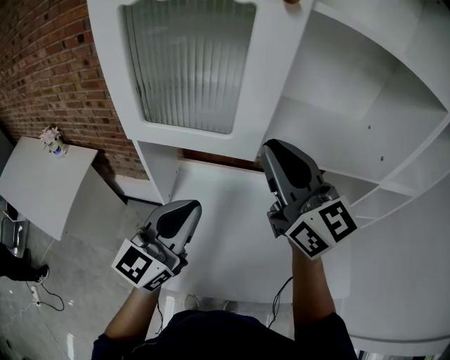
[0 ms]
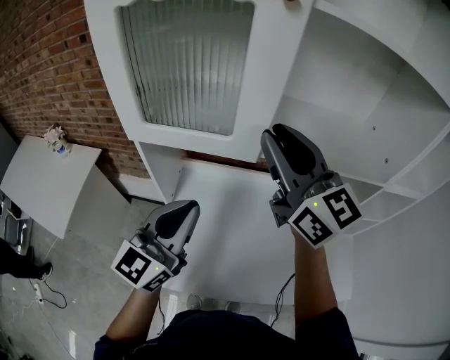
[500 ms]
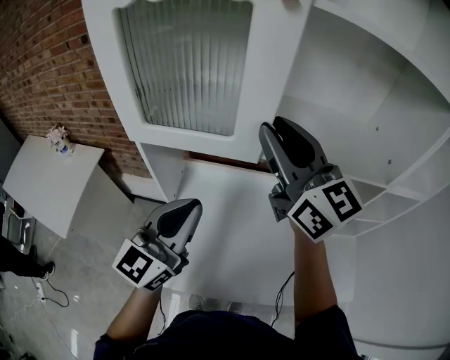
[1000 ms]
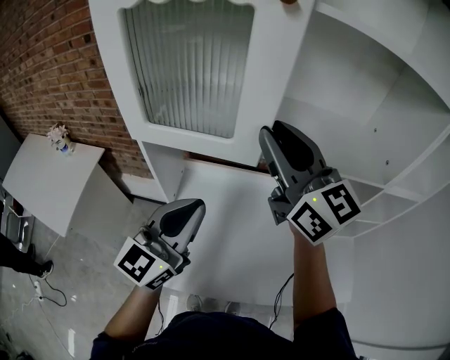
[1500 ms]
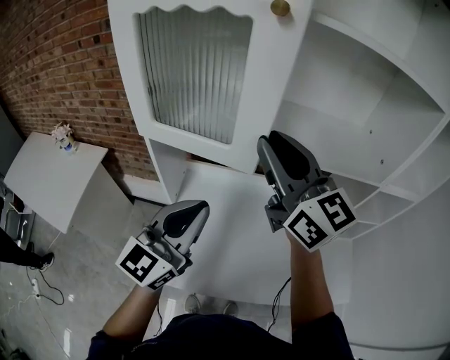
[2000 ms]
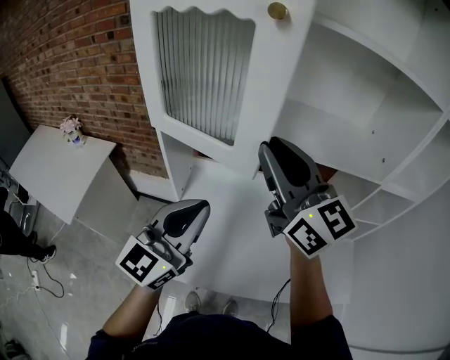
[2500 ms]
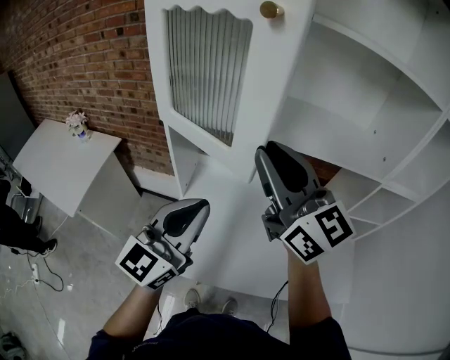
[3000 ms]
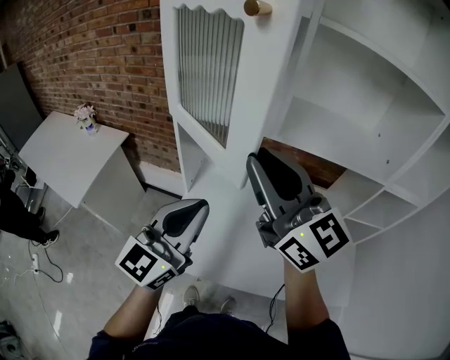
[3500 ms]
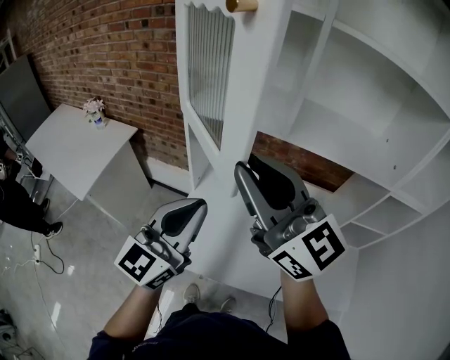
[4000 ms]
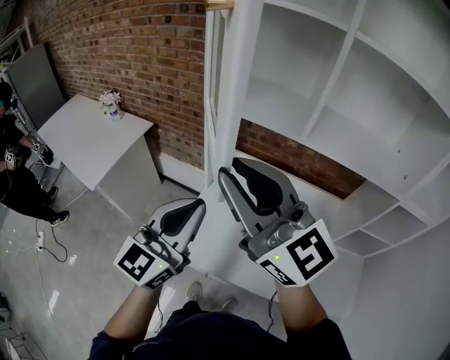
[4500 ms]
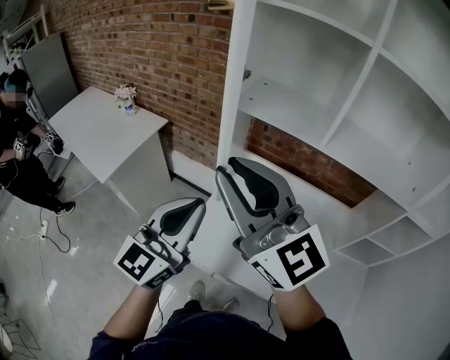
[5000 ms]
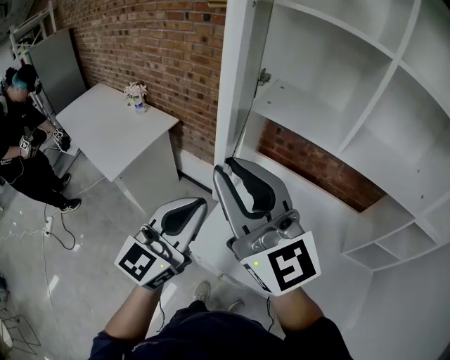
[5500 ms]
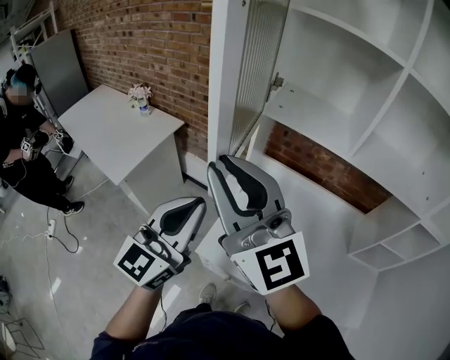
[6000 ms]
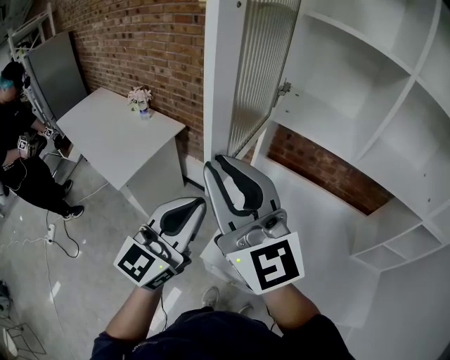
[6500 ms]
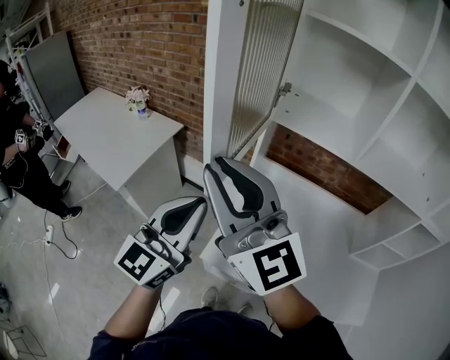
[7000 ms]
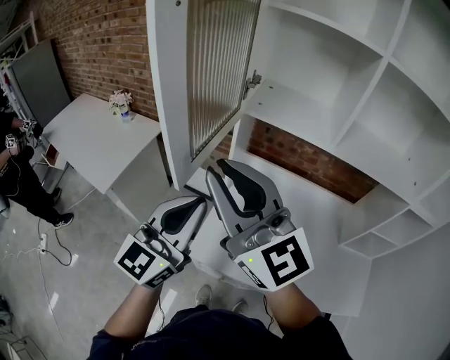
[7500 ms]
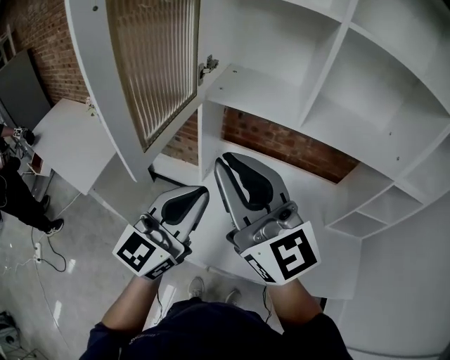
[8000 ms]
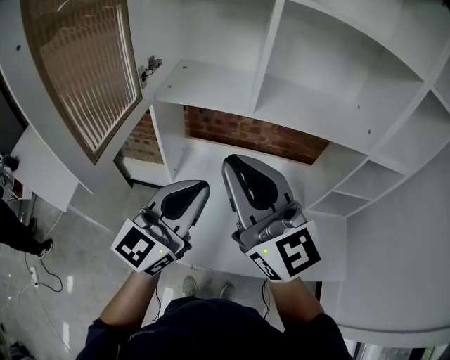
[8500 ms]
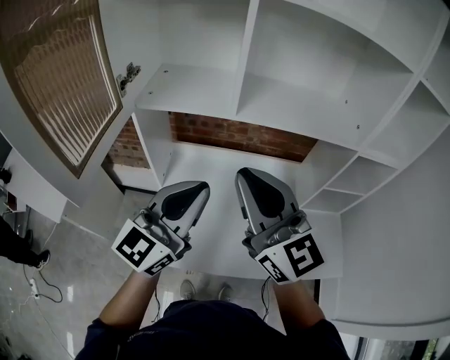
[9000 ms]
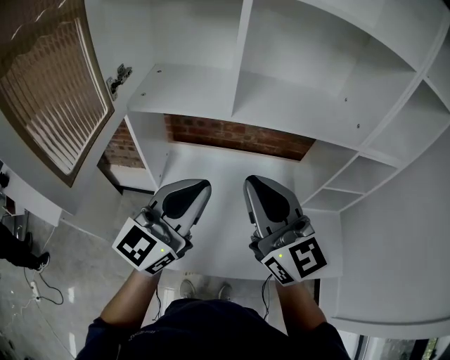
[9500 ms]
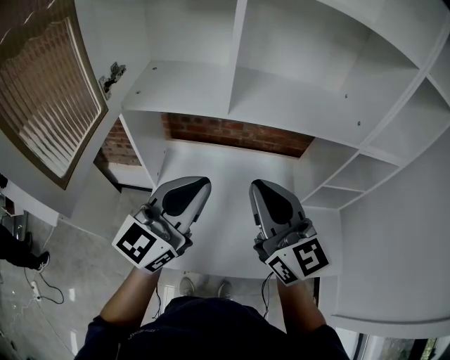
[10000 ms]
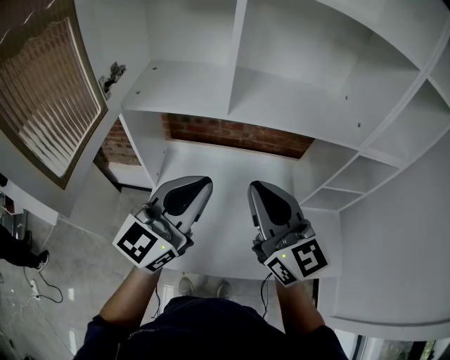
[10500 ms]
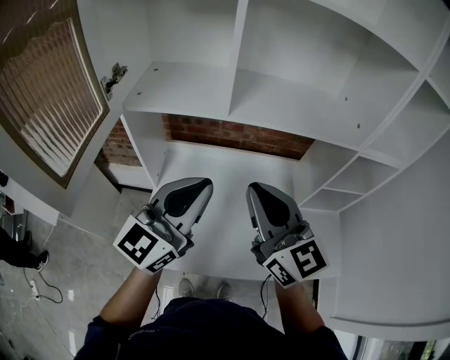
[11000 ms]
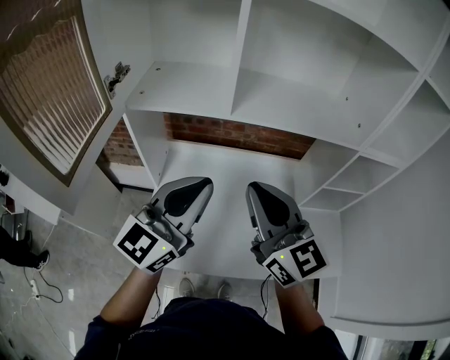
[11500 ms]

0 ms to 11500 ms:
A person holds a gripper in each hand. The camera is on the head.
0 ms to 2000 ms: The grippers move only a little.
2000 ms to 4000 ms: The left gripper heads backward, covering some 10 cm; the right gripper moves backward and to the left, roughly 15 cm.
4000 ms to 6000 ms: Both grippers travel together to the left, approximately 20 cm.
6000 ms to 7500 ms: The grippers stay close to where they were, moving slightly.
7500 ms to 9500 ms: Both grippers move to the right, about 25 cm. The left gripper turns by some 20 degrees, while the right gripper swivels roughly 30 degrees.
9500 ms to 11500 ms: The grippers stay close to where they were, moving slightly.

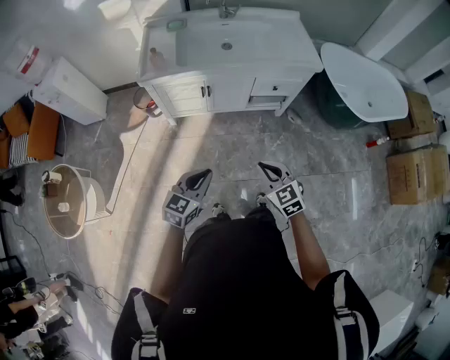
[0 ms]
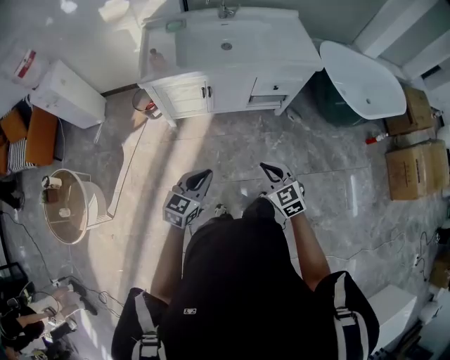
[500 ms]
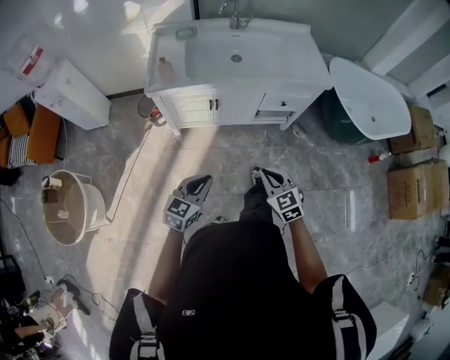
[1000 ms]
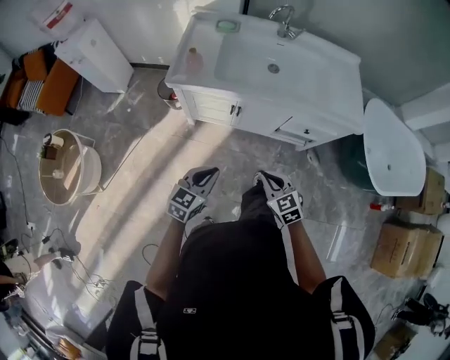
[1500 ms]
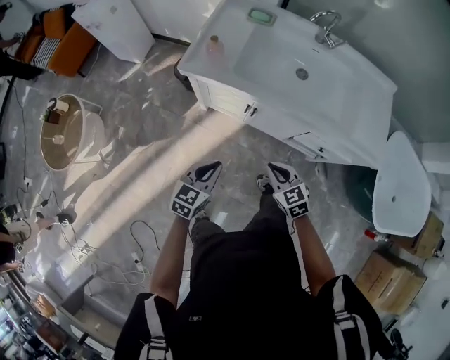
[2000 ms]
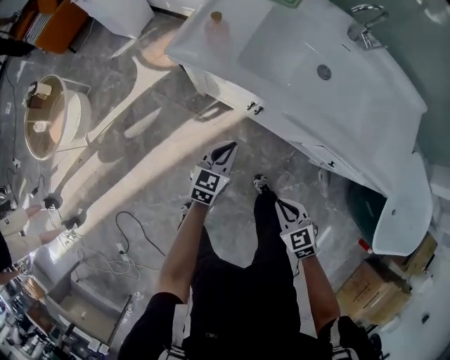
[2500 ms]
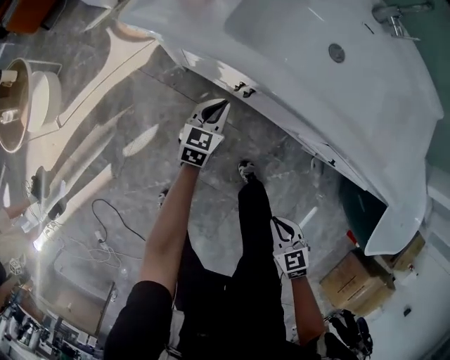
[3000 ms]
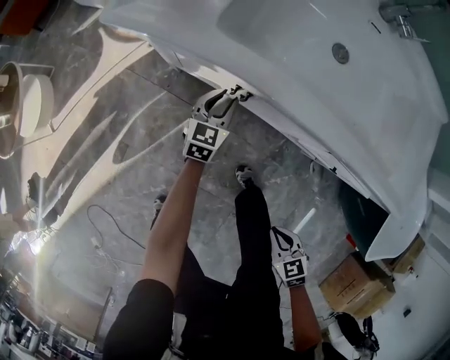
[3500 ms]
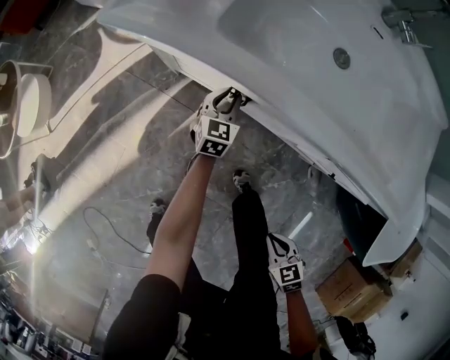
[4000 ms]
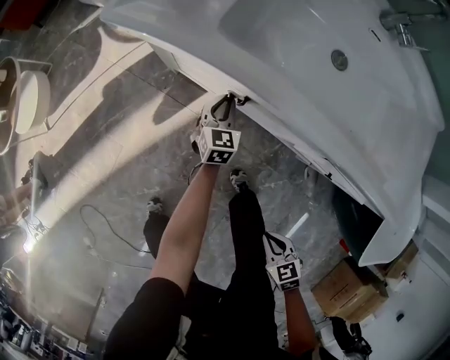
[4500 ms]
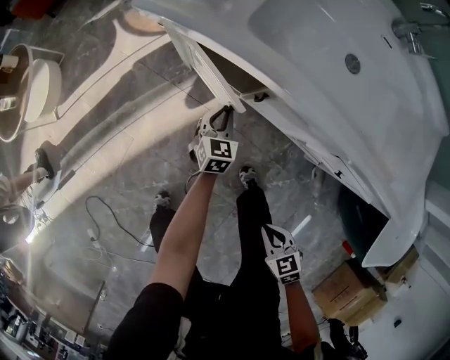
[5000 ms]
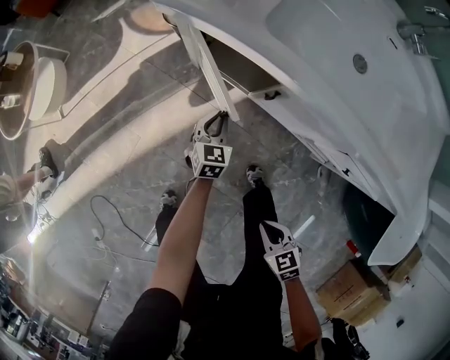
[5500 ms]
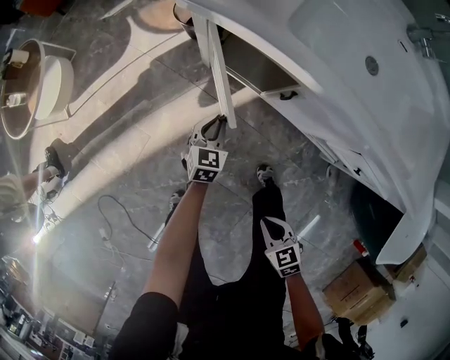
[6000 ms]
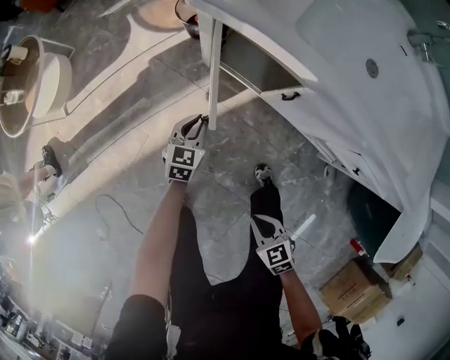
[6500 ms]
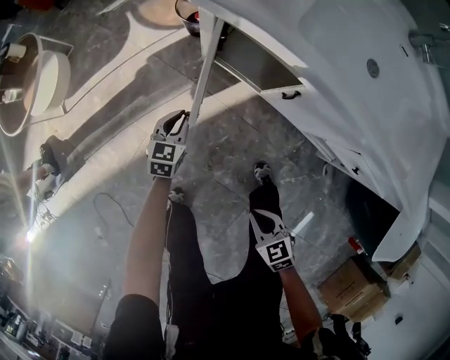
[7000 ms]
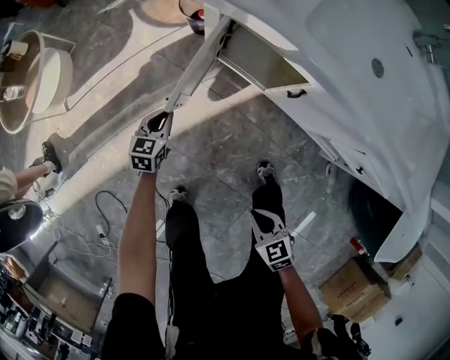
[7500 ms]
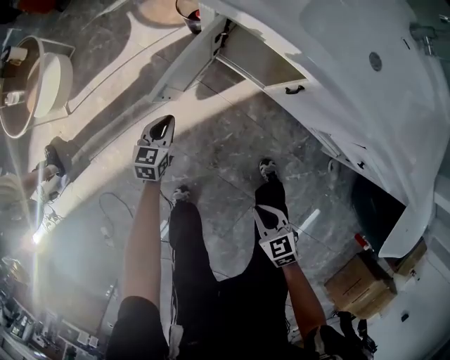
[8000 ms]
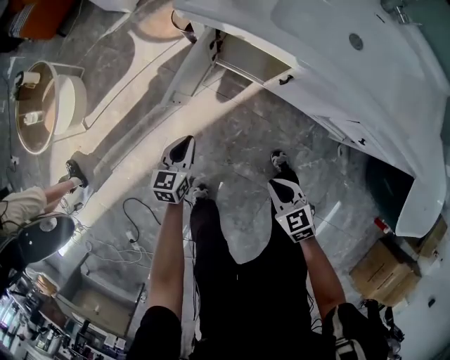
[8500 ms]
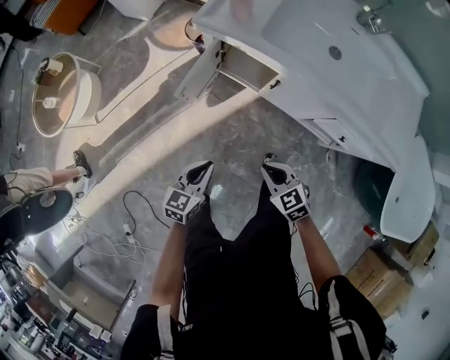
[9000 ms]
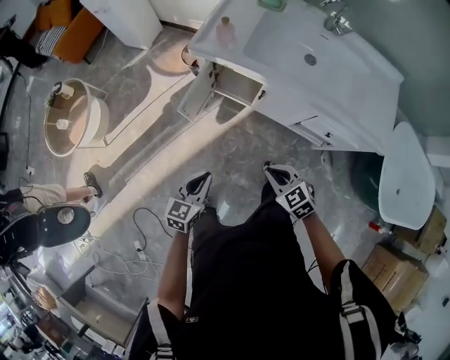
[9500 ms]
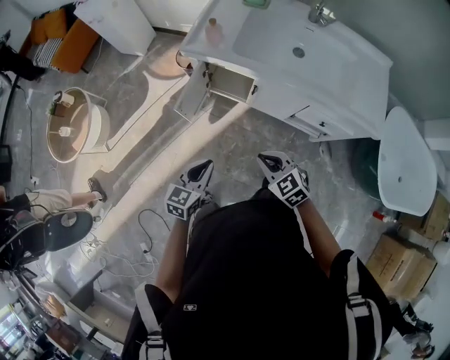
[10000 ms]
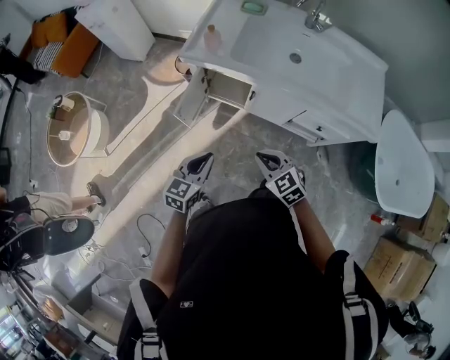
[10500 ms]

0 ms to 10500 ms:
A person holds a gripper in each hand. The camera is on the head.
0 ms to 2000 ms: The right gripper shifts by roughly 30 cm, and swivels about 30 degrees. The left gripper changes place by approximately 25 cm, and swivels roughly 30 degrees.
2000 ms to 4000 ms: The right gripper shifts approximately 30 cm downward, backward and to the right, and turns by roughly 30 degrees; the left gripper shifts roughly 40 cm downward, forward and to the right.
4000 ms to 6500 ms: Both grippers travel together to the left, about 20 cm.
6500 ms to 8500 ms: The left gripper is displaced upward, to the left and backward by some 15 cm; the right gripper goes about 10 cm forward and upward.
8500 ms to 10500 ms: The right gripper shifts about 20 cm upward. The left gripper travels upward and backward by approximately 30 cm, and turns by about 20 degrees.

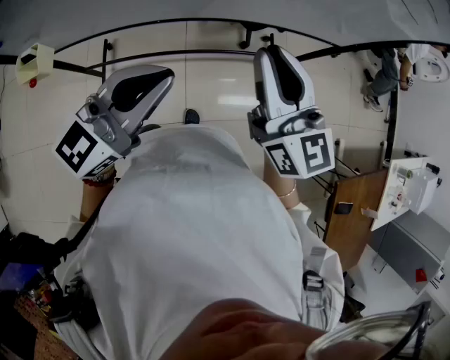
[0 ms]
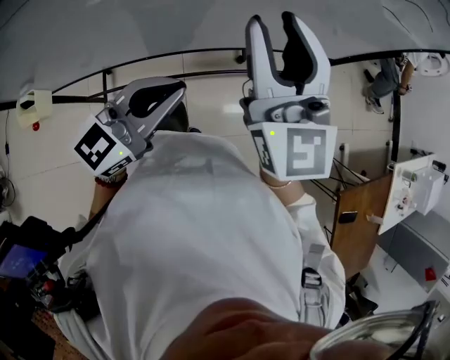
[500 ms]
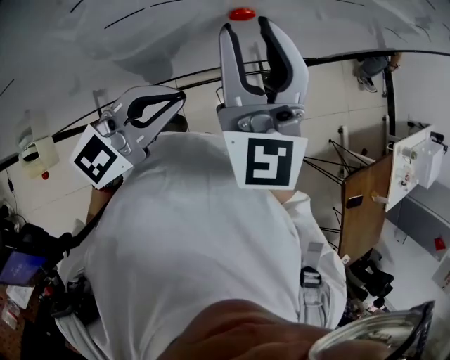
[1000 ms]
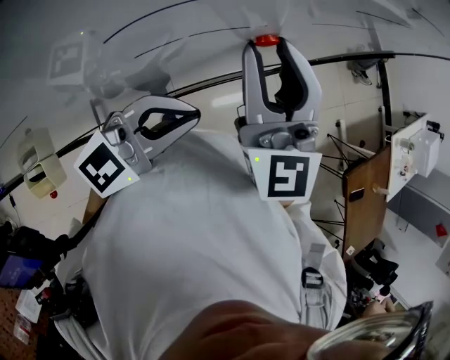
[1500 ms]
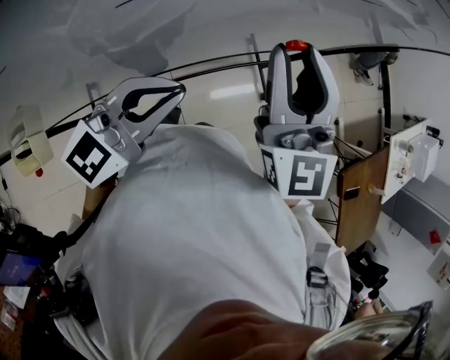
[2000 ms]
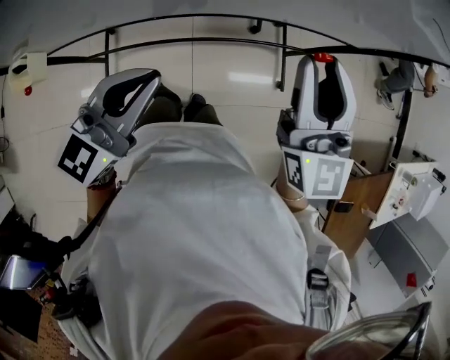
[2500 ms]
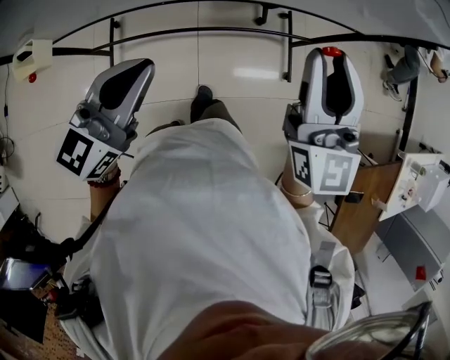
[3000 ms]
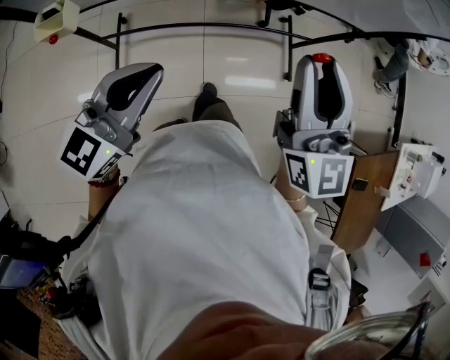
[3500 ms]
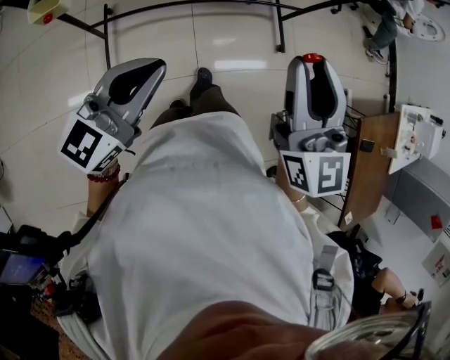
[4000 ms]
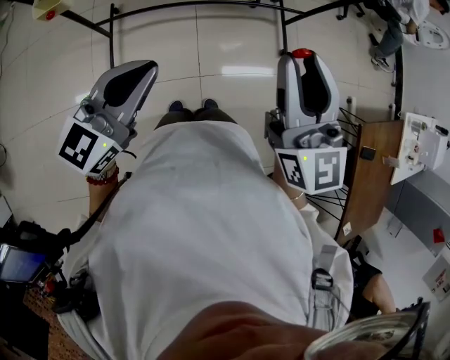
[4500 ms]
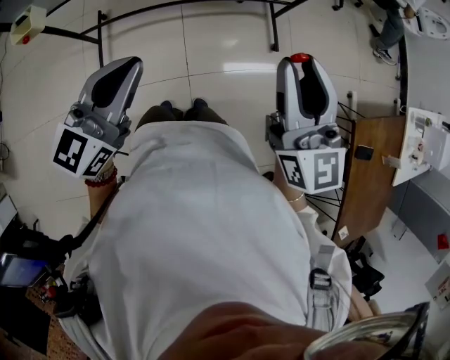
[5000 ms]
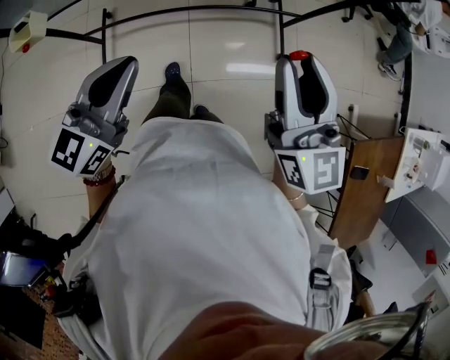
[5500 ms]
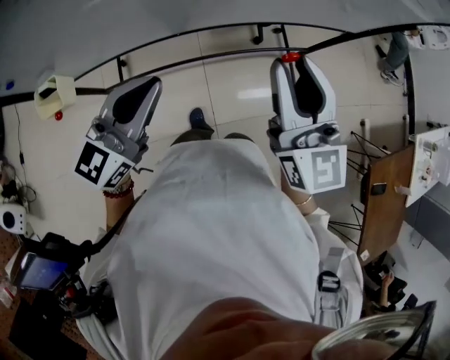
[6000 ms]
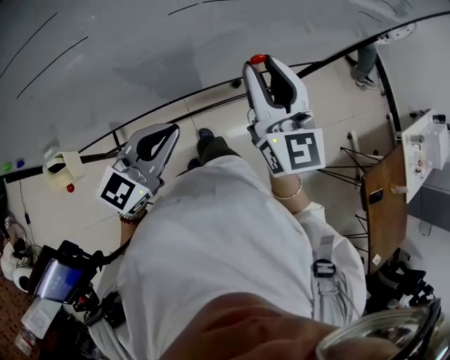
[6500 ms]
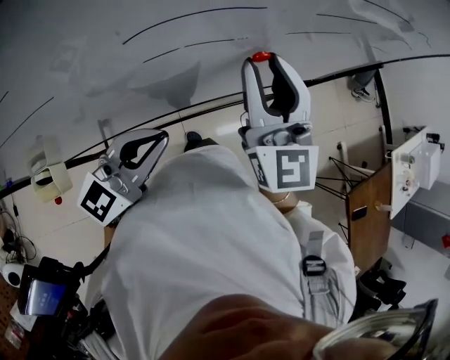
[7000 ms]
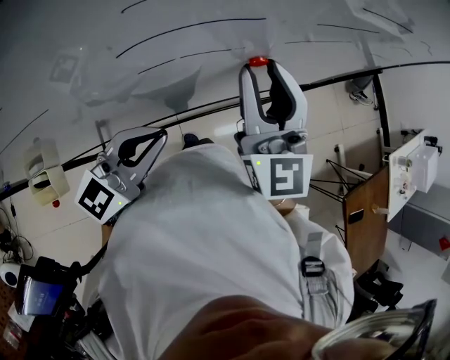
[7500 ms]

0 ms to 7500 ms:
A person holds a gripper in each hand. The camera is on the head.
0 ms to 2000 ms: The right gripper moves approximately 15 cm, and changes its angle by some 30 degrees, while the left gripper ends up roughly 15 cm from where it was.
2000 ms to 4000 ms: The left gripper goes to the left and returns, approximately 10 cm each way, while the right gripper shifts roughly 5 cm to the right, and travels forward and back again, roughly 5 cm each way.
4000 ms to 5500 ms: The right gripper travels to the right and back again, approximately 15 cm each way. The left gripper shifts roughly 10 cm to the left.
5500 ms to 7500 ms: The left gripper is displaced to the right and upward by approximately 10 cm, and swivels approximately 20 degrees, while the right gripper is displaced upward and forward by about 10 cm.
